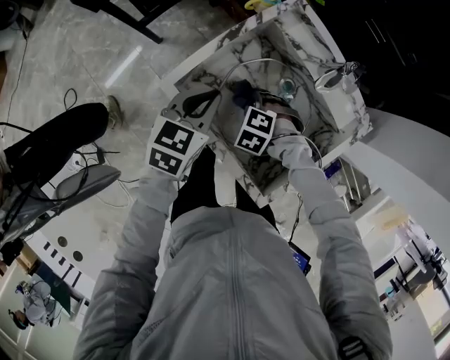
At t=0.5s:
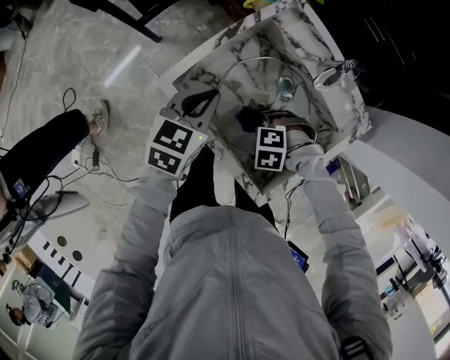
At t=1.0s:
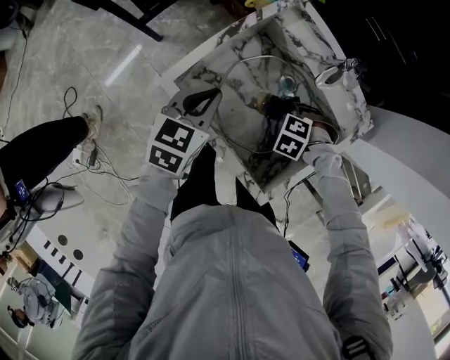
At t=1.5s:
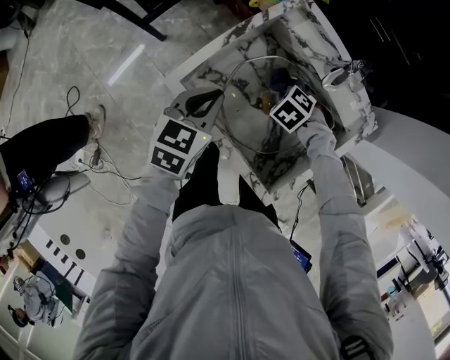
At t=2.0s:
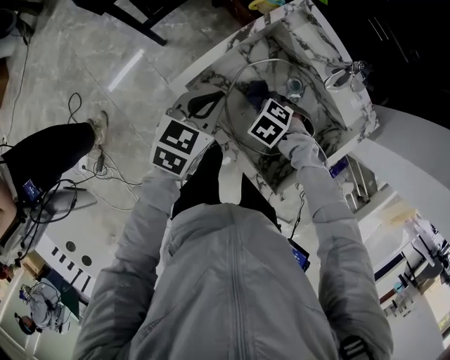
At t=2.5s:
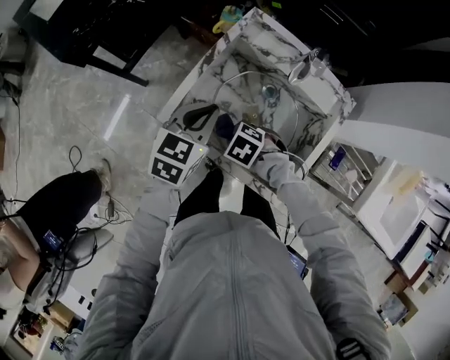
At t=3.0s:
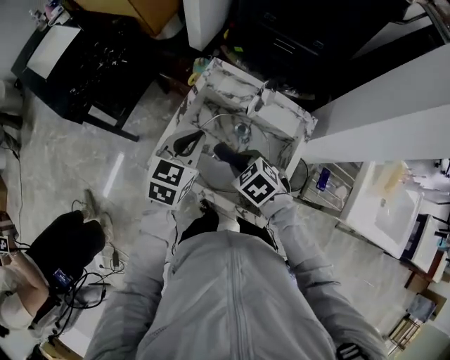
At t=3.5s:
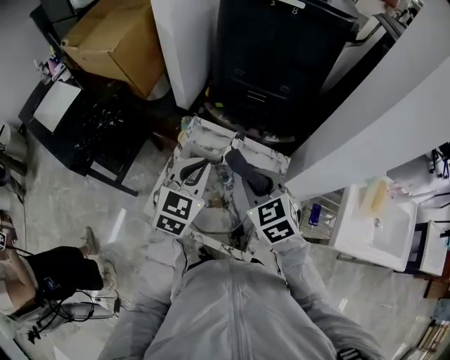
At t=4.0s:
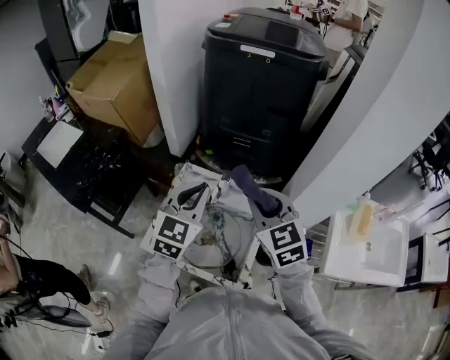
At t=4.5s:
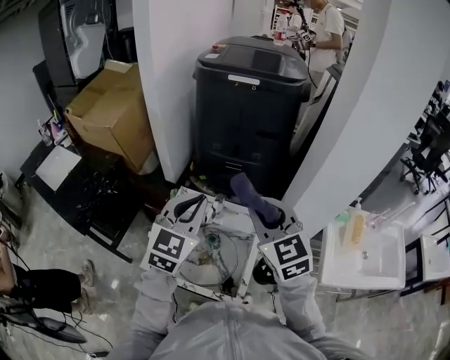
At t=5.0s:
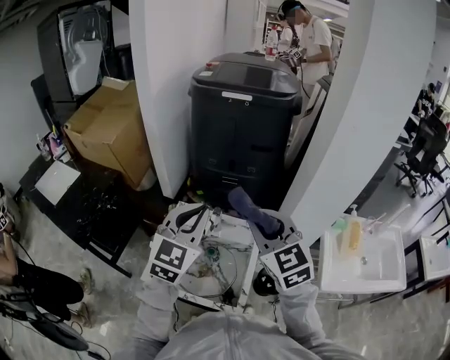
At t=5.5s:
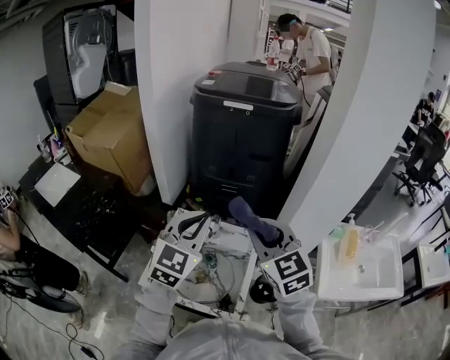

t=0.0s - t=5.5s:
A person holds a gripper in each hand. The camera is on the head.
t=2.0s - t=3.5s: The left gripper goes approximately 20 cm upward, and swivels approximately 30 degrees, while the right gripper is displaced upward by roughly 35 cm, and angles its fingers upward, by some 40 degrees.
t=3.5s - t=5.5s: The two grippers go roughly 20 cm upward. The right gripper rotates about 20 degrees.

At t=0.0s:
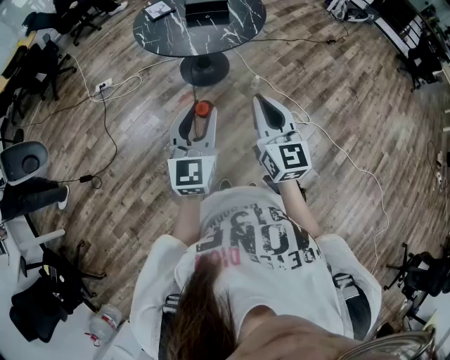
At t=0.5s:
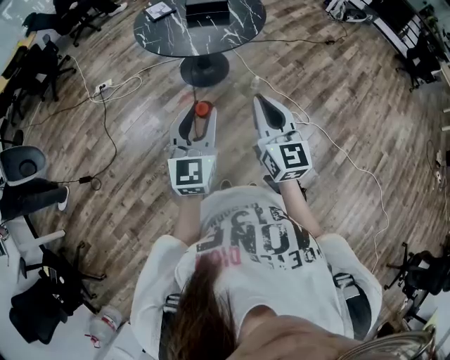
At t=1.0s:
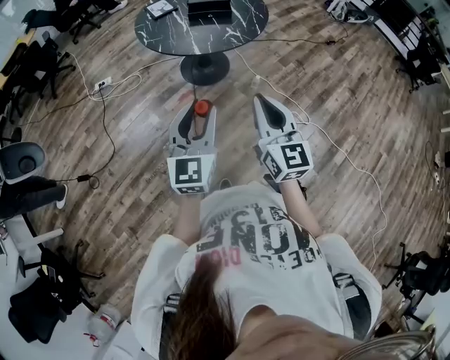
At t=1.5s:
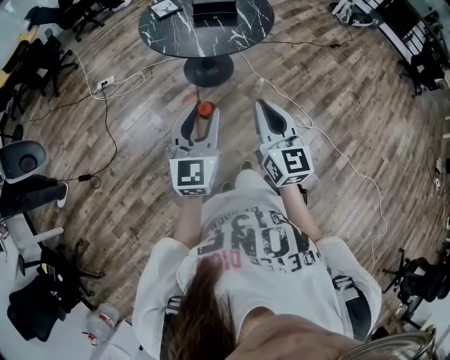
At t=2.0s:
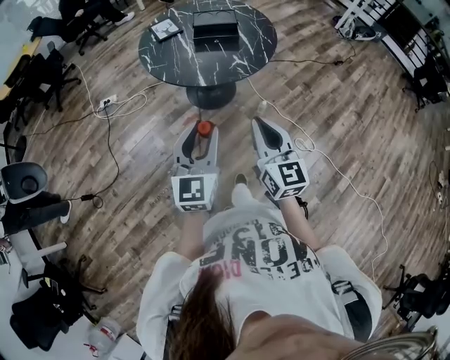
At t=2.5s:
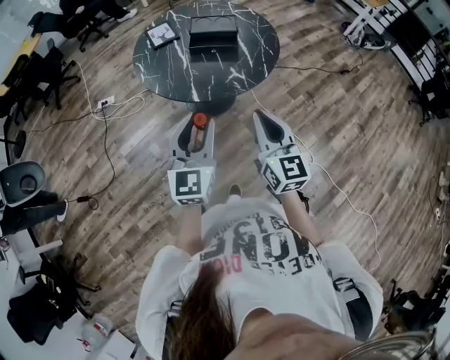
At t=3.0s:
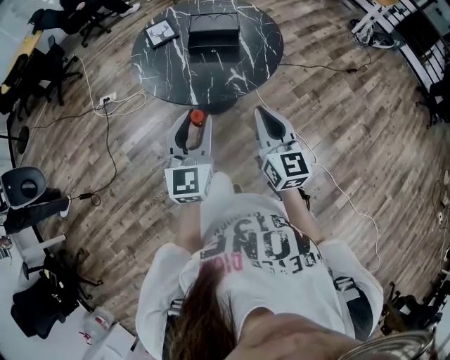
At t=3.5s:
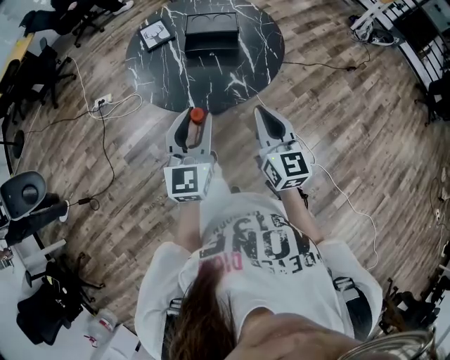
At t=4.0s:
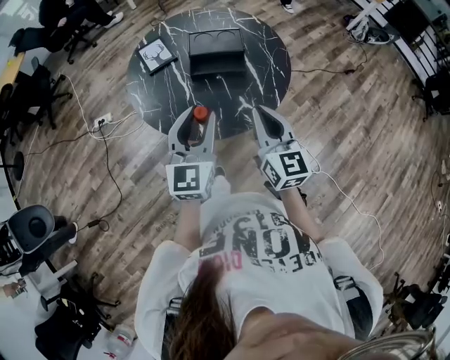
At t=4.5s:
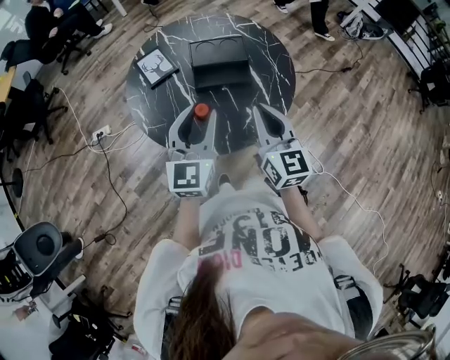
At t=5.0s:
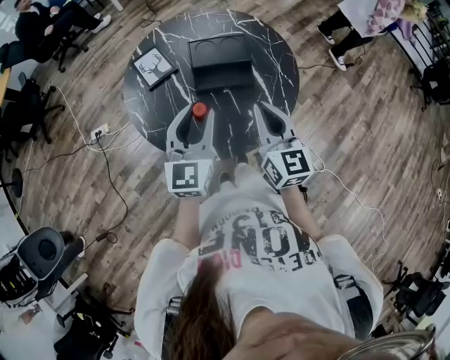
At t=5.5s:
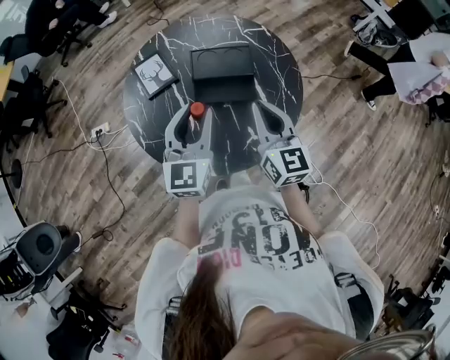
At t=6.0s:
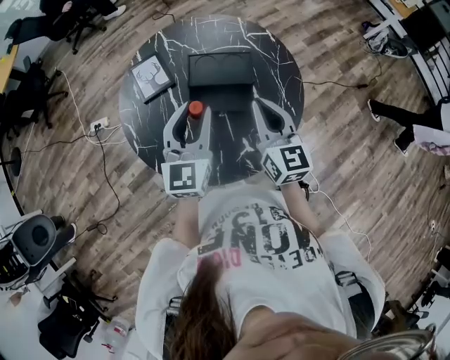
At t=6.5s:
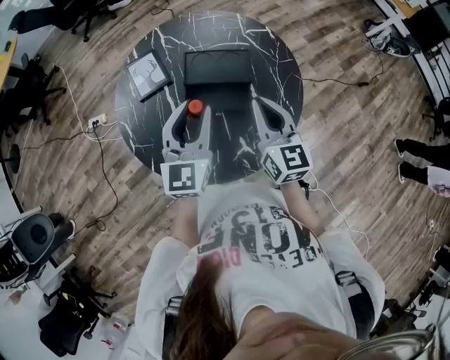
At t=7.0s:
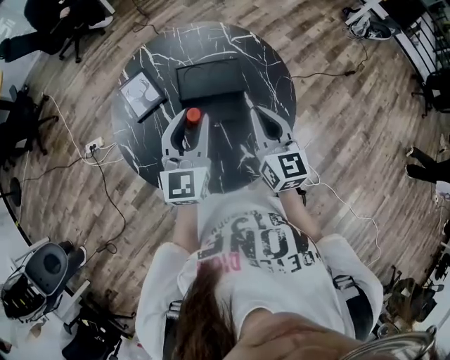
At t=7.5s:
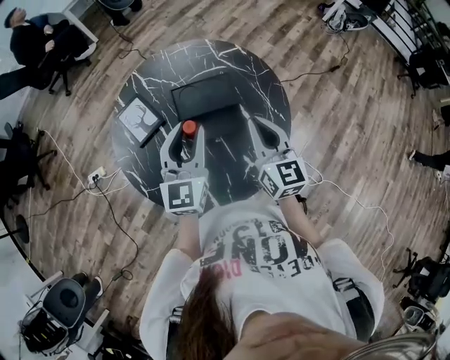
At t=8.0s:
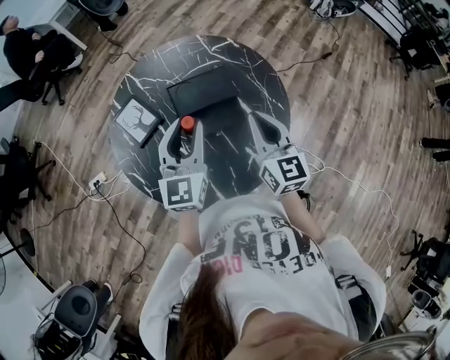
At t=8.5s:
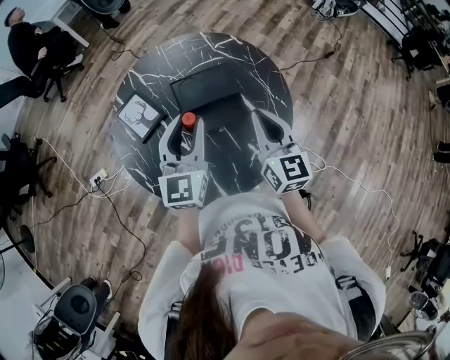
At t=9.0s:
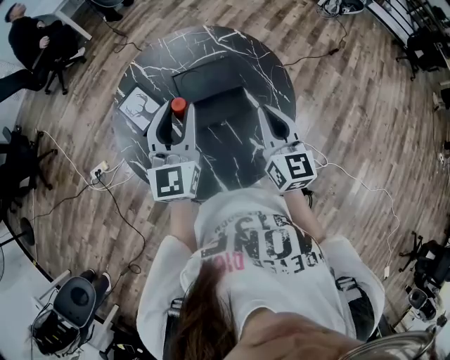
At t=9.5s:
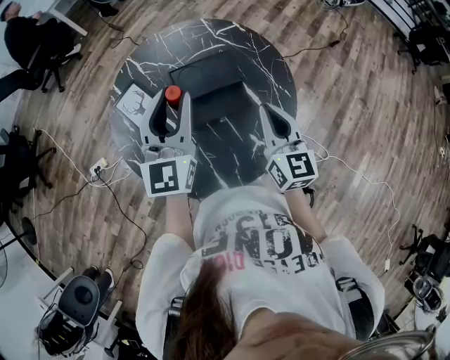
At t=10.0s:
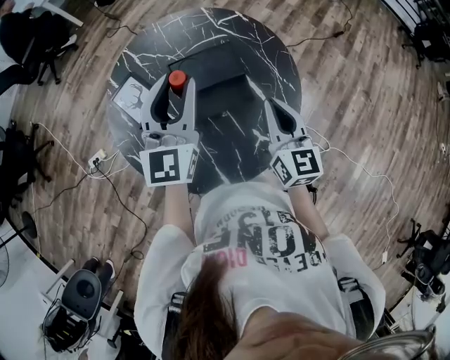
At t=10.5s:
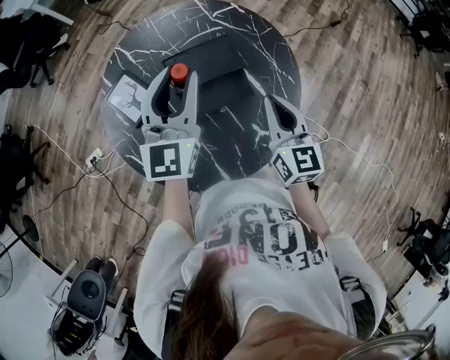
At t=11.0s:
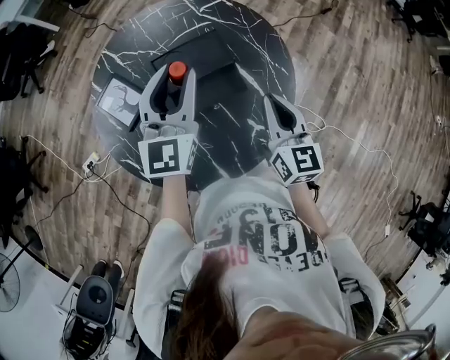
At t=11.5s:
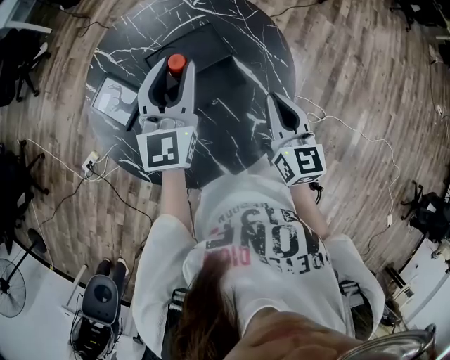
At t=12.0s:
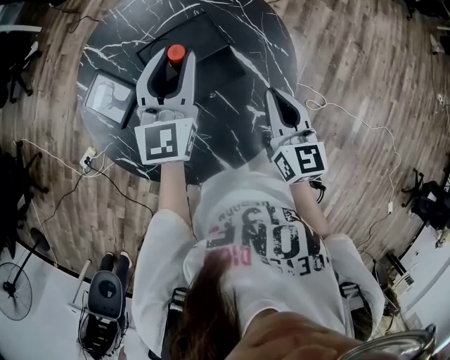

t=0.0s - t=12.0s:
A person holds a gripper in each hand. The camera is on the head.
t=0.0s - t=2.0s: The grippers both shift forward by about 10 cm.
t=2.0s - t=4.0s: The two grippers go some 30 cm forward.
t=4.0s - t=6.0s: The grippers both shift forward by some 20 cm.
t=6.0s - t=8.0s: The grippers move only a little.
t=8.0s - t=10.0s: The left gripper goes roughly 5 cm forward.
t=10.0s - t=12.0s: The right gripper moves about 5 cm. Meanwhile the left gripper goes about 10 cm downward and forward.

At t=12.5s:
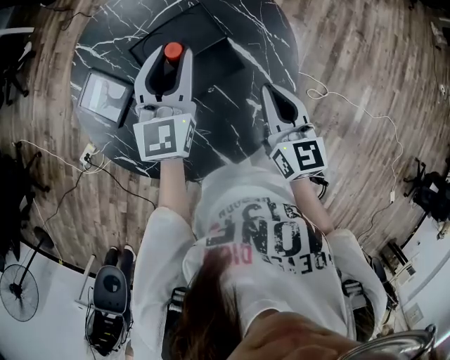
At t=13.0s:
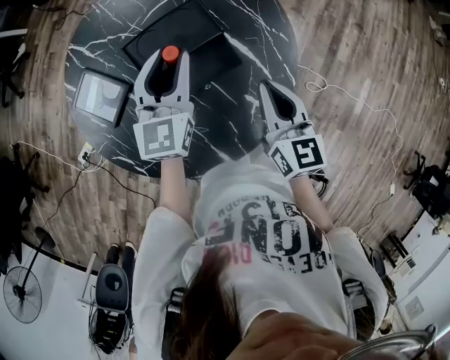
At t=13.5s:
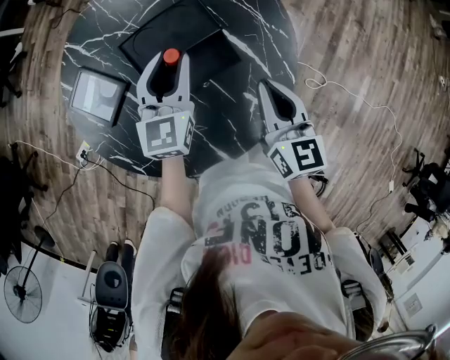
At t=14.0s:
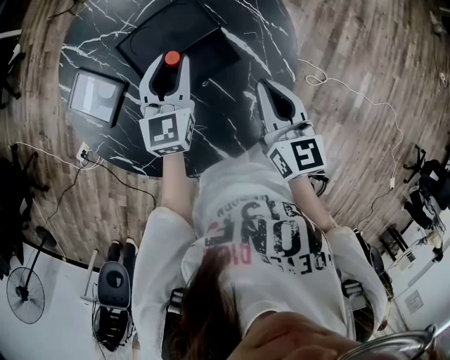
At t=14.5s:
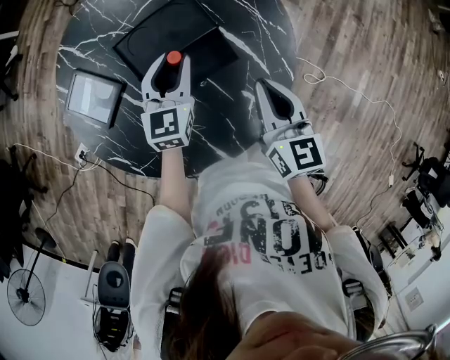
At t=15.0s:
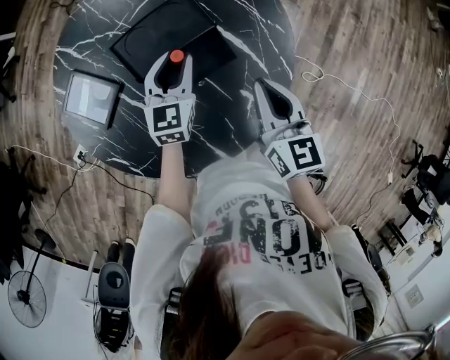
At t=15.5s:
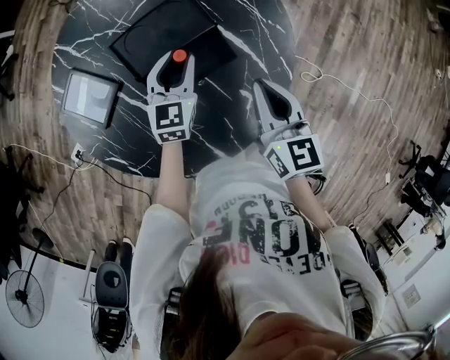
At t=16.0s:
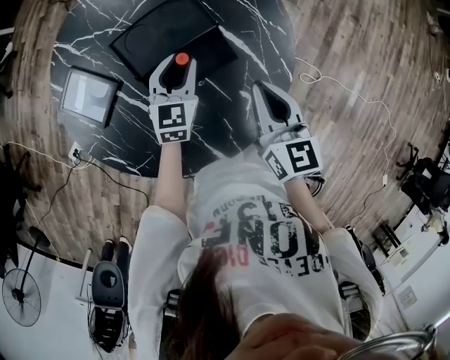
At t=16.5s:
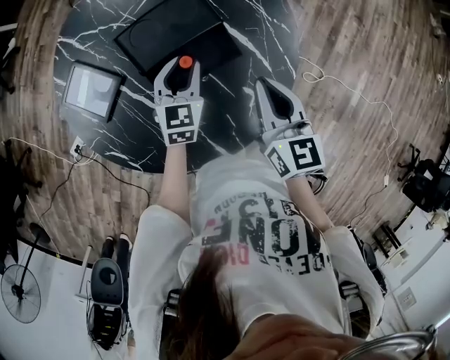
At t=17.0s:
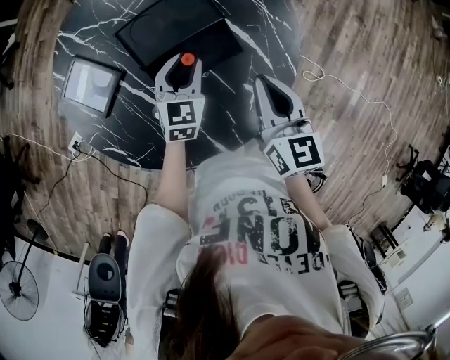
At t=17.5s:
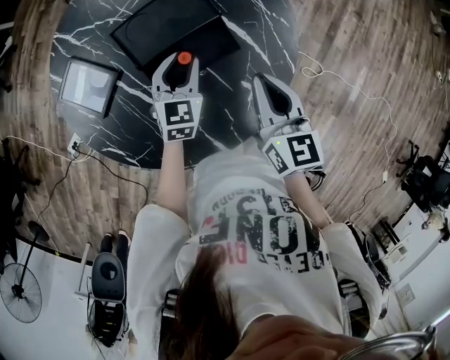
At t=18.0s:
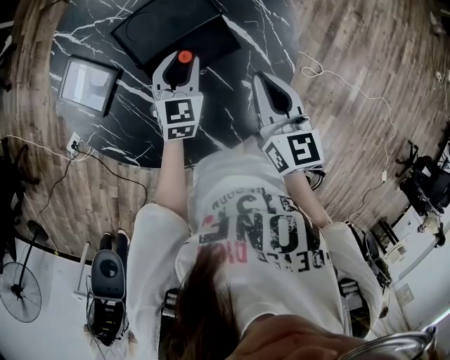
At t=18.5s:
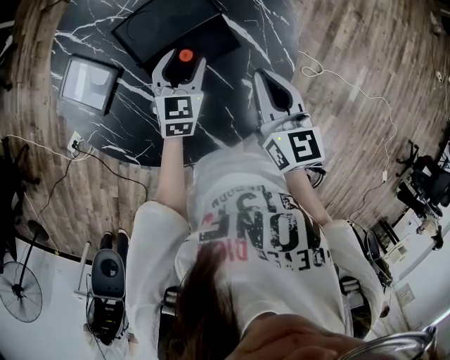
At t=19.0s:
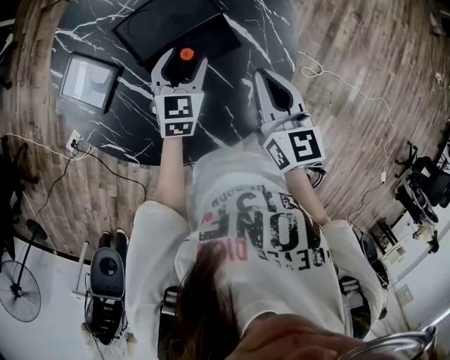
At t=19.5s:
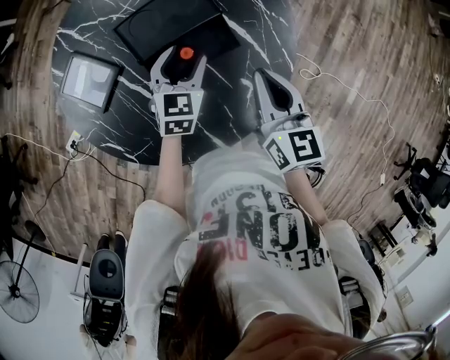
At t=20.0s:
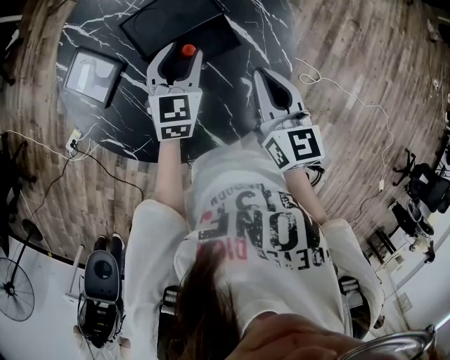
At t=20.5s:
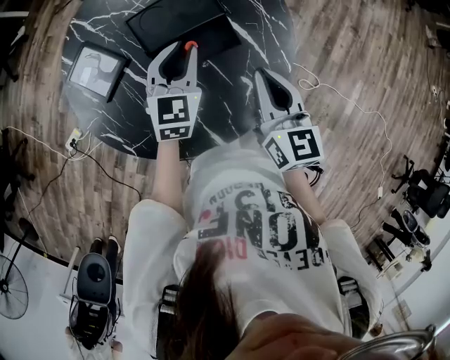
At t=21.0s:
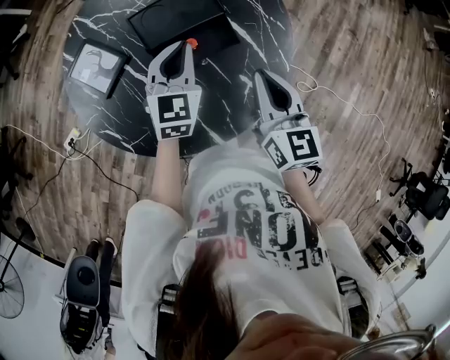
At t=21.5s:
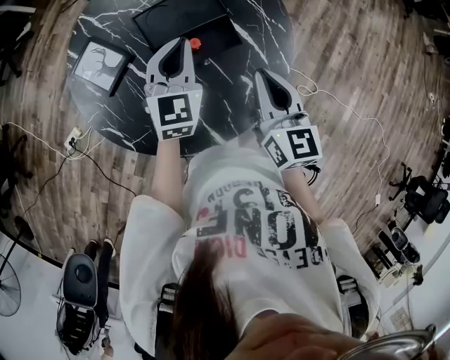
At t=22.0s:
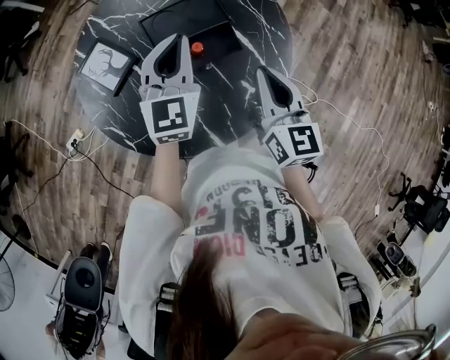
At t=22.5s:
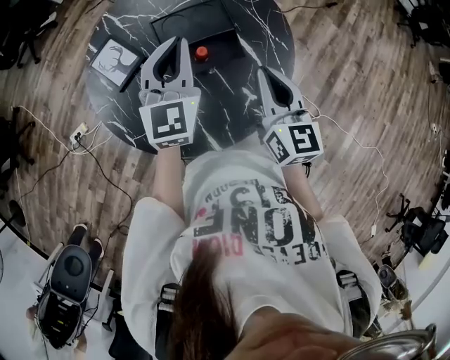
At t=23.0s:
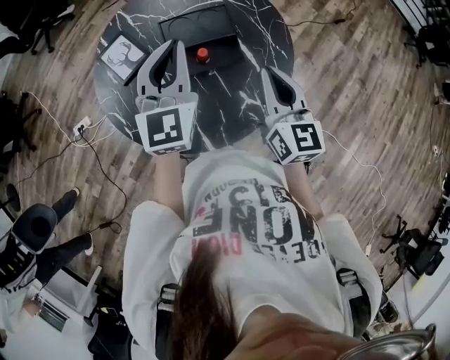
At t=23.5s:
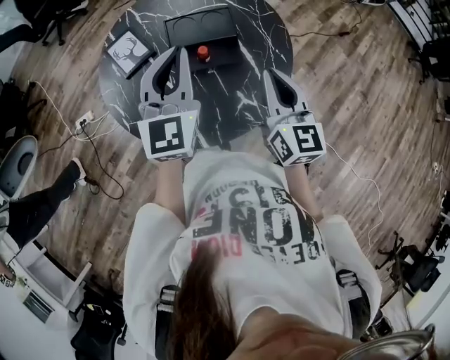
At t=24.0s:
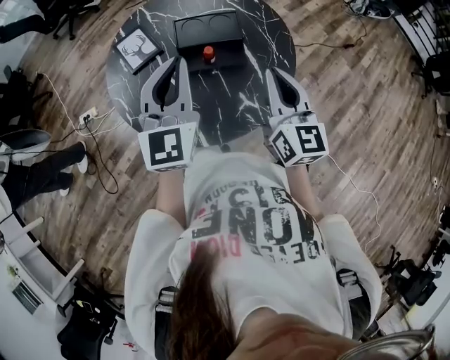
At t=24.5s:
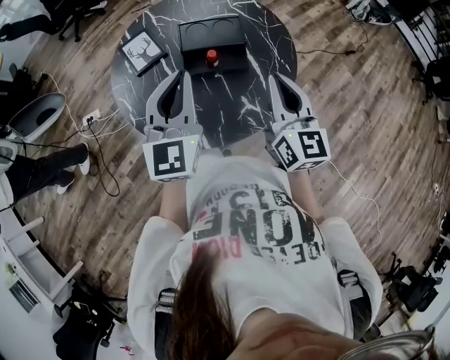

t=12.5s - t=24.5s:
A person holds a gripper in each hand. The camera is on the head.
t=12.5s - t=14.5s: The left gripper goes some 10 cm downward.
t=14.5s - t=16.5s: The left gripper is displaced downward by roughly 5 cm.
t=16.5s - t=18.5s: The left gripper opens up.
t=18.5s - t=20.5s: The left gripper moves upward, roughly 10 cm, and closes.
t=20.5s - t=22.5s: The left gripper moves upward, approximately 15 cm, and swivels roughly 20 degrees.
t=22.5s - t=24.5s: The right gripper moves upward and backward, some 10 cm; the left gripper goes some 15 cm backward.
